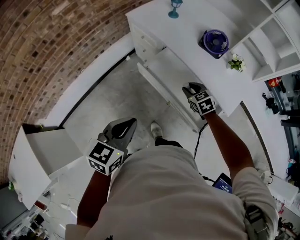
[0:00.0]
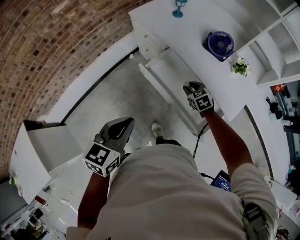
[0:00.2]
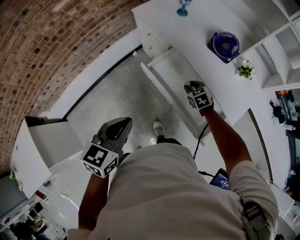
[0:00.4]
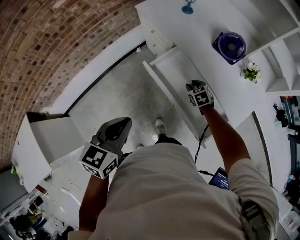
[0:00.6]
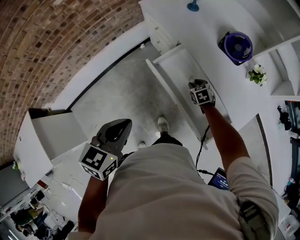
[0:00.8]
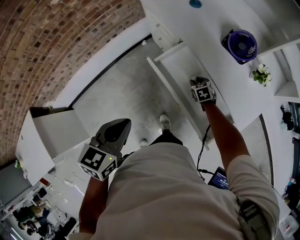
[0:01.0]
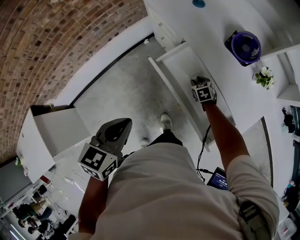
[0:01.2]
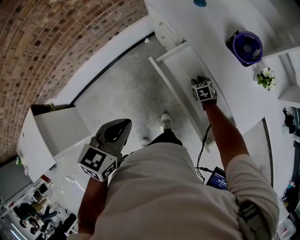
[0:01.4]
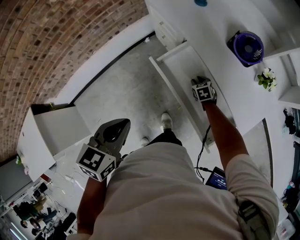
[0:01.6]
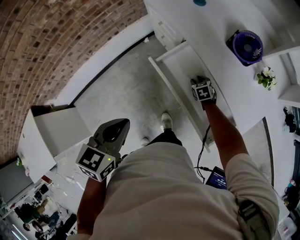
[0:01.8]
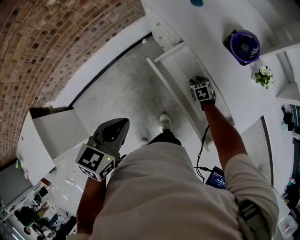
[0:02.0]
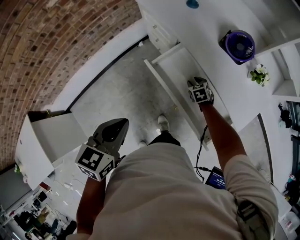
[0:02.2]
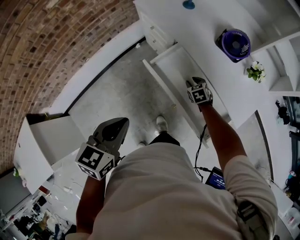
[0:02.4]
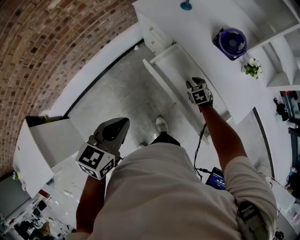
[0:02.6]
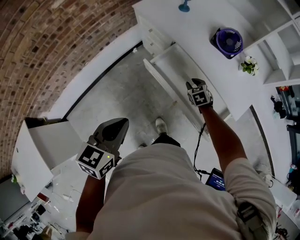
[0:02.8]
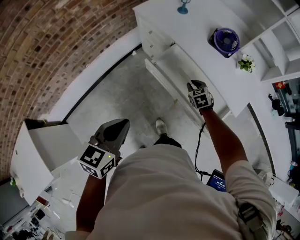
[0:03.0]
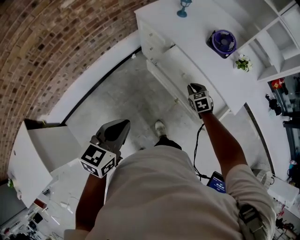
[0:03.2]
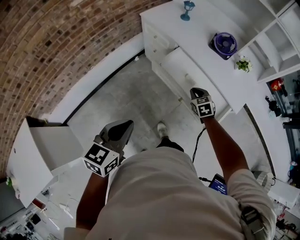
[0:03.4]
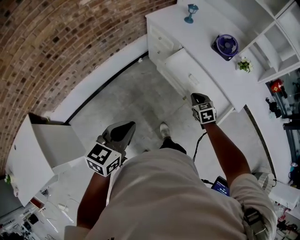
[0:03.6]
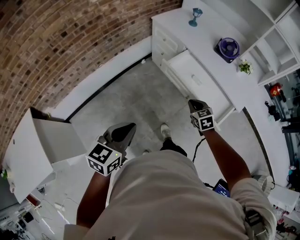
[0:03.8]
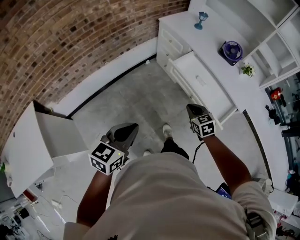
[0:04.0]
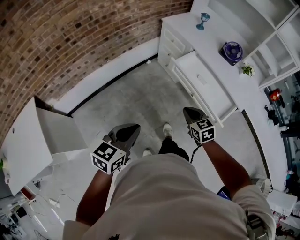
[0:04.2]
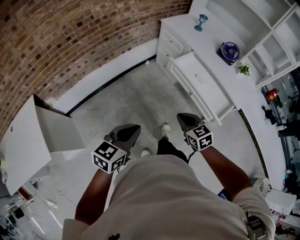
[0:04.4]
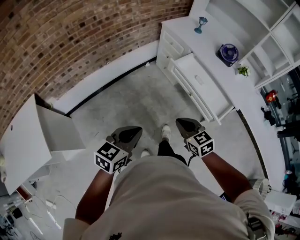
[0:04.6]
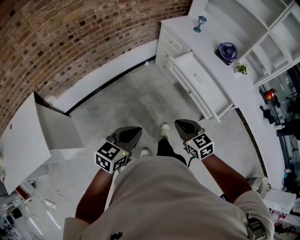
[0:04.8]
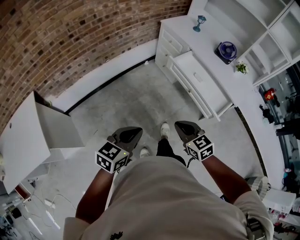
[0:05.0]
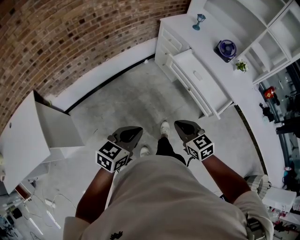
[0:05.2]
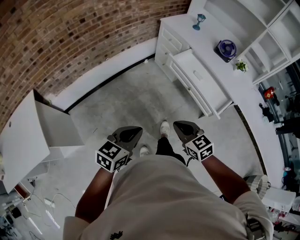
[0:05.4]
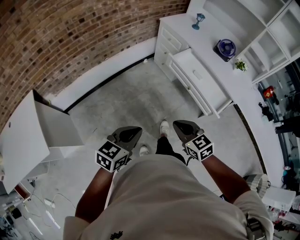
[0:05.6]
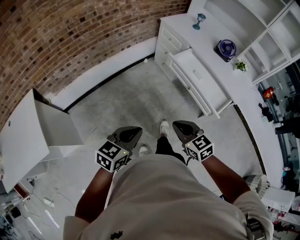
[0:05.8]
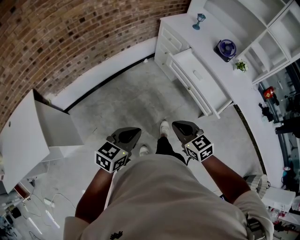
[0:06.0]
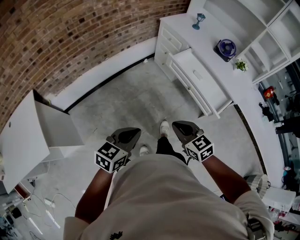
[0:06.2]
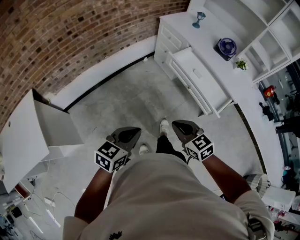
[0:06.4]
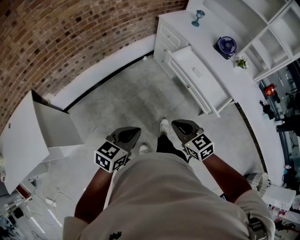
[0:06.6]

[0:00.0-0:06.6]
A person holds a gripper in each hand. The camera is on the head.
0:00.0 to 0:01.6: The right gripper moves downward and forward, approximately 20 cm. Meanwhile the left gripper shifts some 5 cm forward.
0:01.6 to 0:03.2: The left gripper heads backward, covering about 10 cm. The right gripper travels upward and backward by some 20 cm, and closes up.
0:03.2 to 0:05.0: The left gripper travels backward by approximately 25 cm; the right gripper goes about 50 cm backward, to the left and upward, and turns by roughly 30 degrees.
0:05.0 to 0:06.6: There are only small adjustments of the grippers.

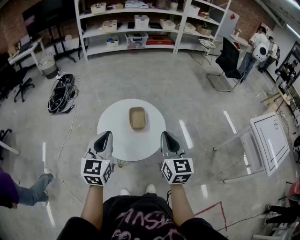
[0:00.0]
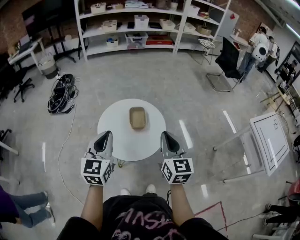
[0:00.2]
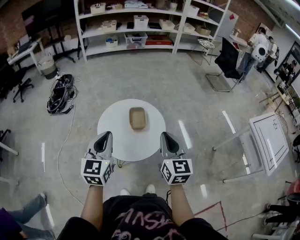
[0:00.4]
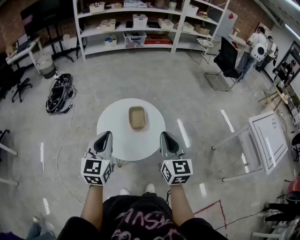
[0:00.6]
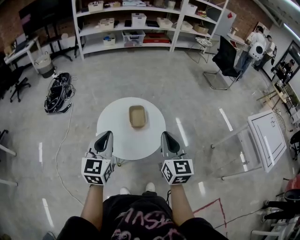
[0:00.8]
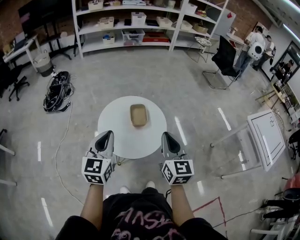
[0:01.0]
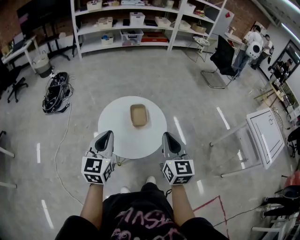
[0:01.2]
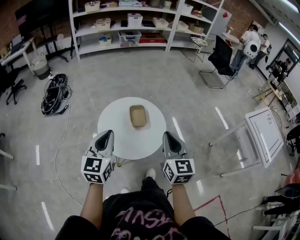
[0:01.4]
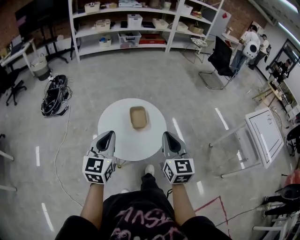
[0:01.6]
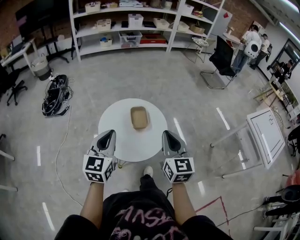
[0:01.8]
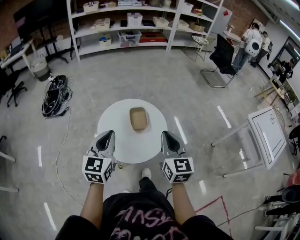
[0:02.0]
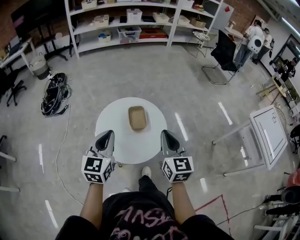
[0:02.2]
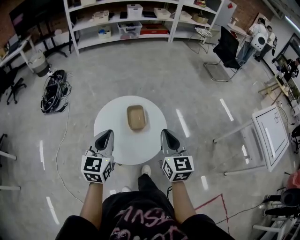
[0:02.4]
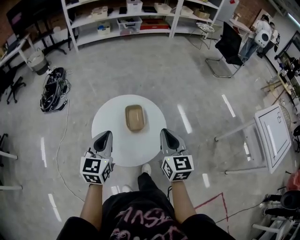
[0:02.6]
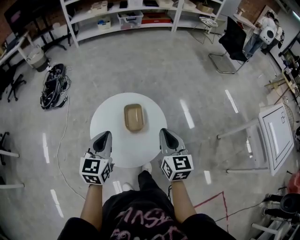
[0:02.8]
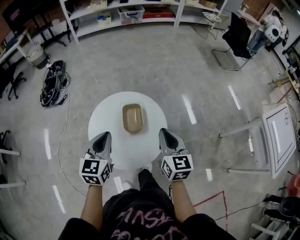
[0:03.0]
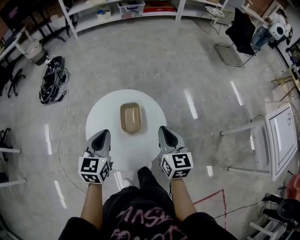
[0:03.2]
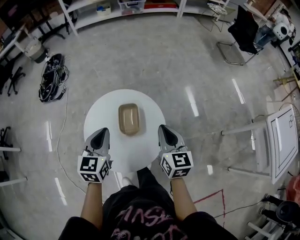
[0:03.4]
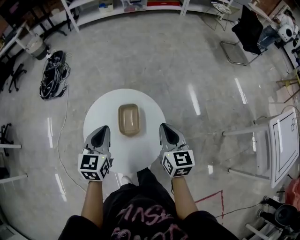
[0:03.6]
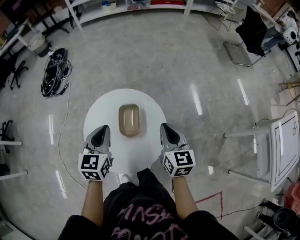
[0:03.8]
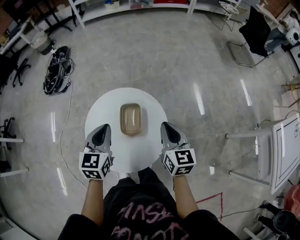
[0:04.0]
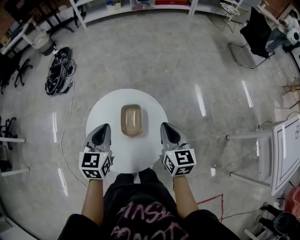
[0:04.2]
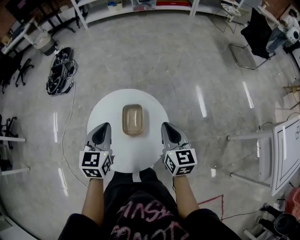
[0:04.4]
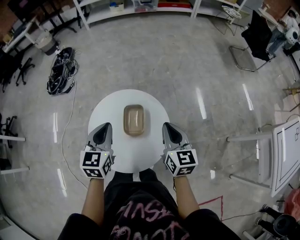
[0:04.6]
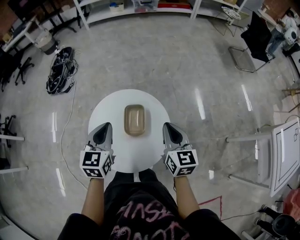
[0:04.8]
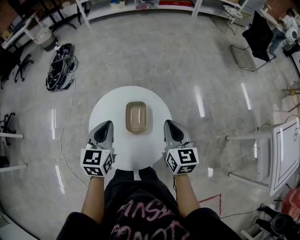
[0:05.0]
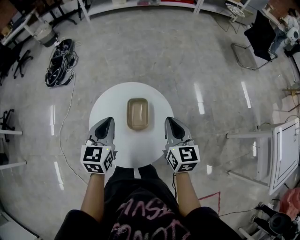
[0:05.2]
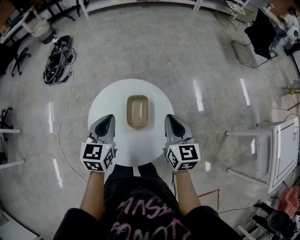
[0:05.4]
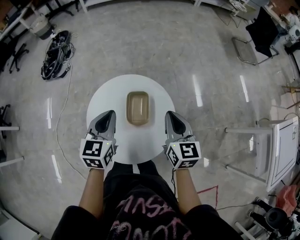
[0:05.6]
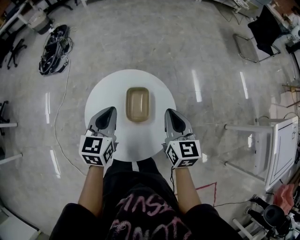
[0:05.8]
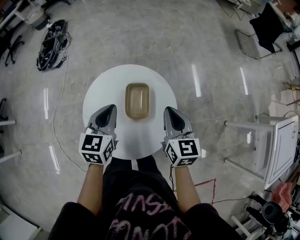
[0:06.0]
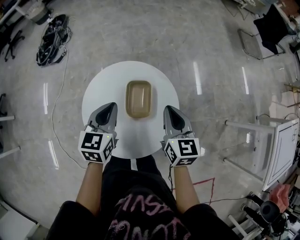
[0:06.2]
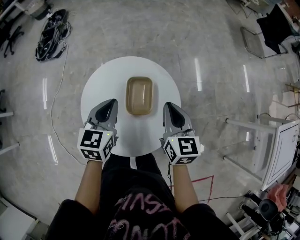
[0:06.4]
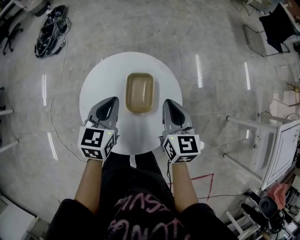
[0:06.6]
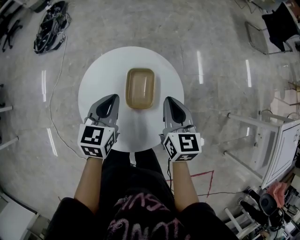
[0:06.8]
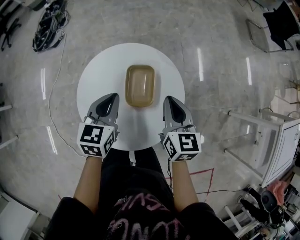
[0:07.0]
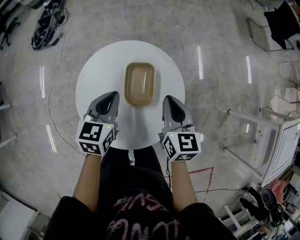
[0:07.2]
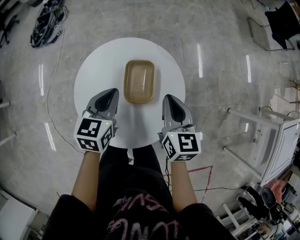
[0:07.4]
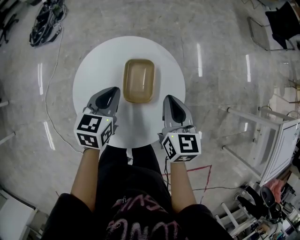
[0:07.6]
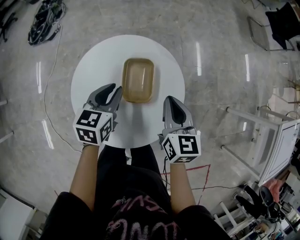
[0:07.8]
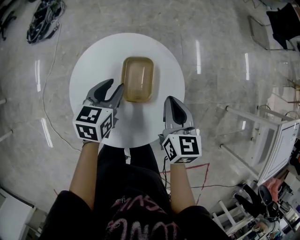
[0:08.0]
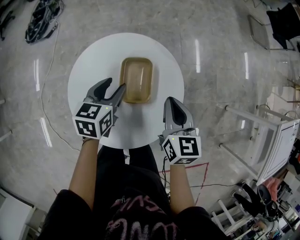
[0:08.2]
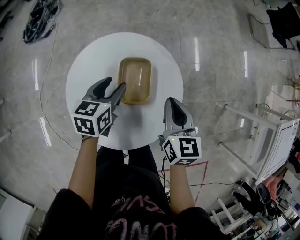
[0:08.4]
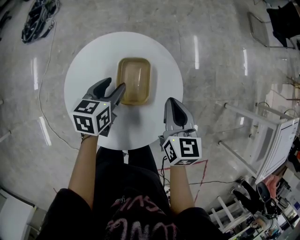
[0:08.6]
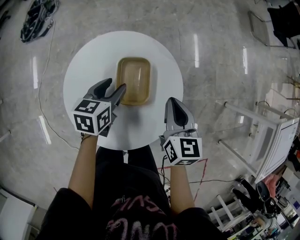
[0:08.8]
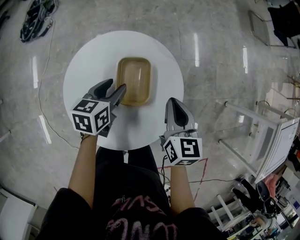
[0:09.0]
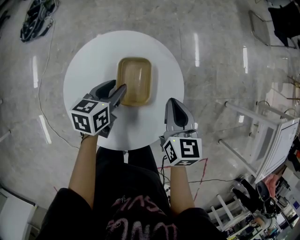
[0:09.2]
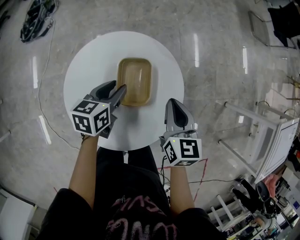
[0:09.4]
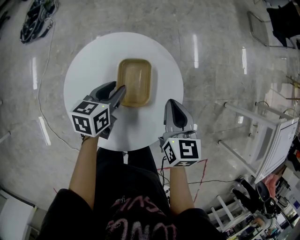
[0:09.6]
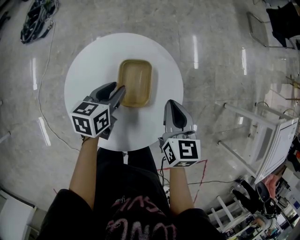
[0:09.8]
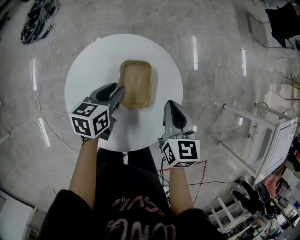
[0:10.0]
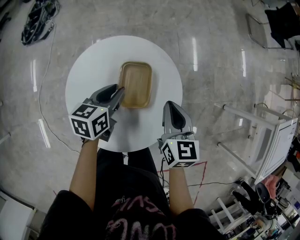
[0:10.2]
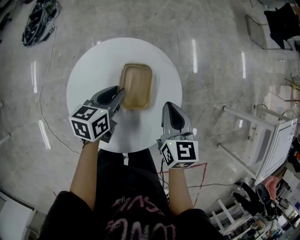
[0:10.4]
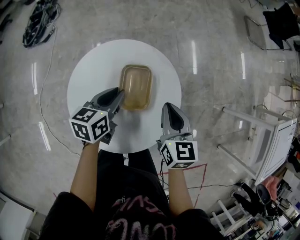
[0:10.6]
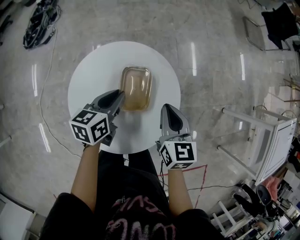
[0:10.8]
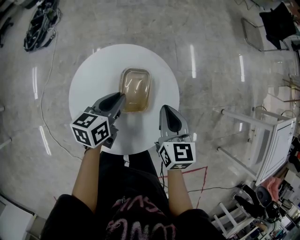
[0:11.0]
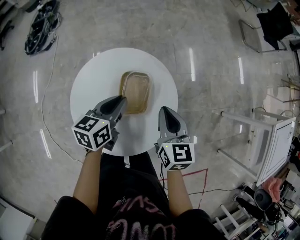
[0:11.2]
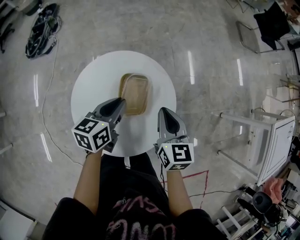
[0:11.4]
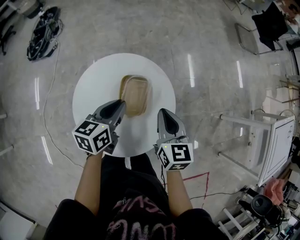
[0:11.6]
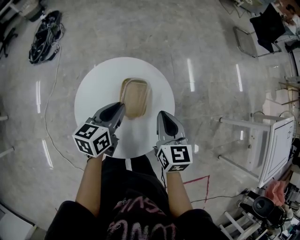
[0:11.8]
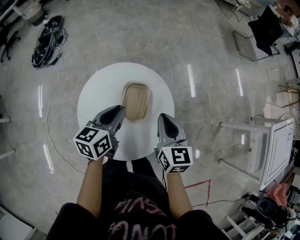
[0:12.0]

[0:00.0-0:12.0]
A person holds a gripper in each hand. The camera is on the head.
0:00.0 to 0:01.6: There are only small adjustments of the grippers.
0:01.6 to 0:03.0: Both grippers travel together forward and downward, roughly 20 cm.
0:03.0 to 0:04.4: Both grippers move forward, about 10 cm.
0:04.4 to 0:06.0: The left gripper heads downward, covering some 5 cm, while the right gripper travels to the left by approximately 5 cm.
0:06.0 to 0:07.6: The grippers both shift downward by about 10 cm.
0:07.6 to 0:09.0: The left gripper goes some 5 cm downward, and opens up.
0:09.0 to 0:10.4: The left gripper closes its fingers.
0:10.4 to 0:12.0: Both grippers move upward, about 10 cm.

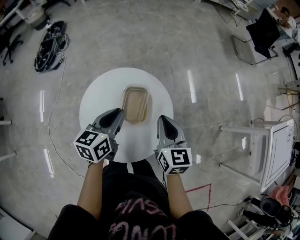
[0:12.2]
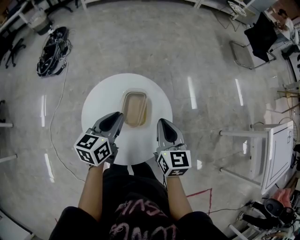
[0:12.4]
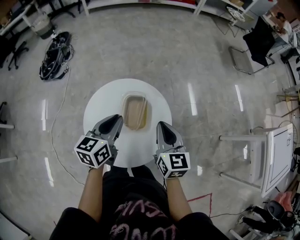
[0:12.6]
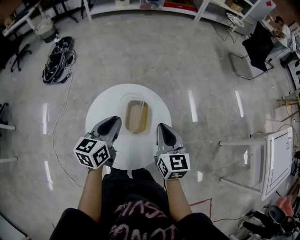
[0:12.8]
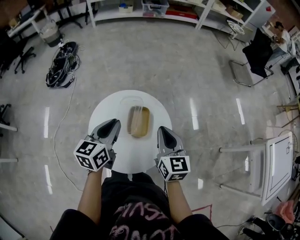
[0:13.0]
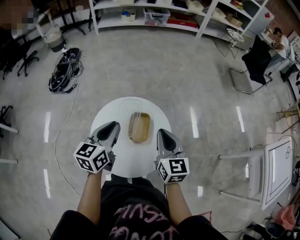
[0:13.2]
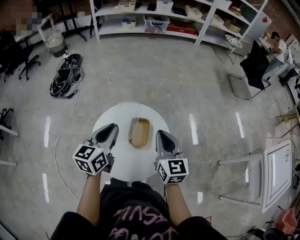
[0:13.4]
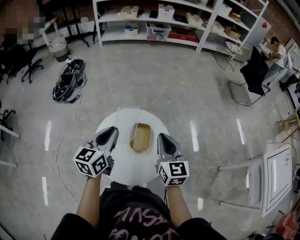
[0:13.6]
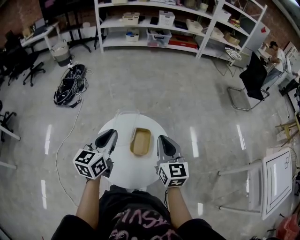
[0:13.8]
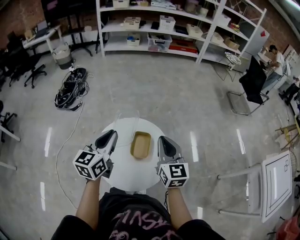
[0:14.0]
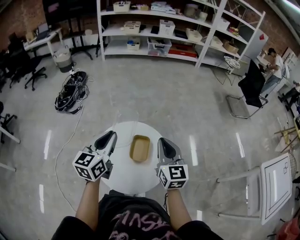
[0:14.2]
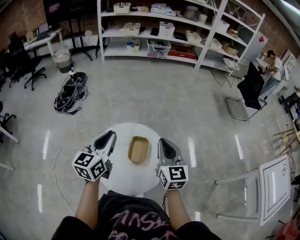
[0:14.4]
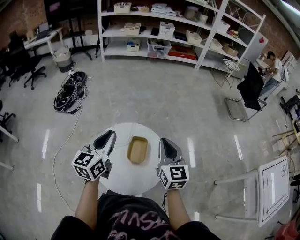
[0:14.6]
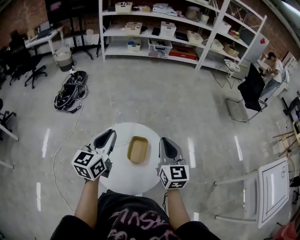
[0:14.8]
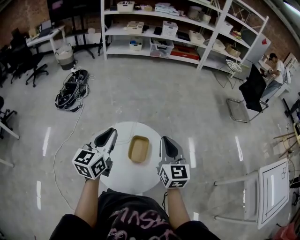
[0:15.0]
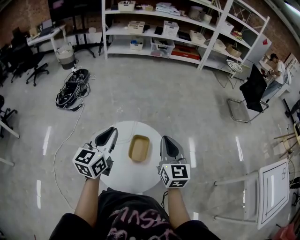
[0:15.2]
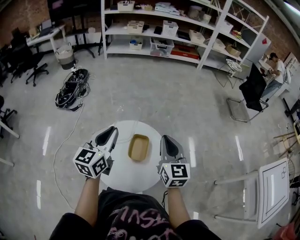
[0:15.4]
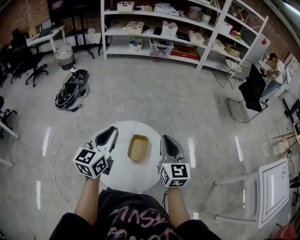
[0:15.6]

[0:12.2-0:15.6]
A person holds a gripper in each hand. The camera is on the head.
0:12.2 to 0:13.8: Both grippers move upward, approximately 15 cm. The left gripper turns by some 20 degrees.
0:13.8 to 0:15.6: The grippers move only a little.

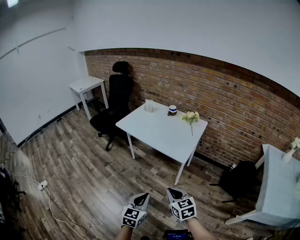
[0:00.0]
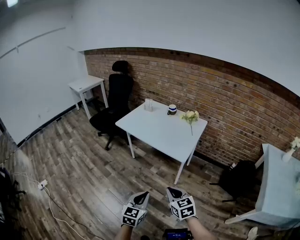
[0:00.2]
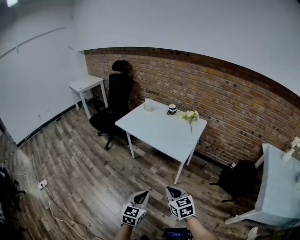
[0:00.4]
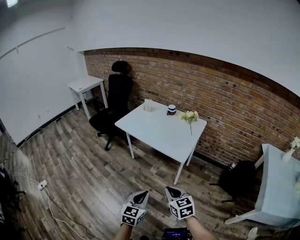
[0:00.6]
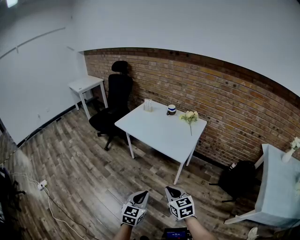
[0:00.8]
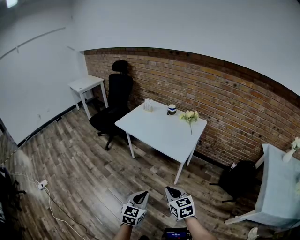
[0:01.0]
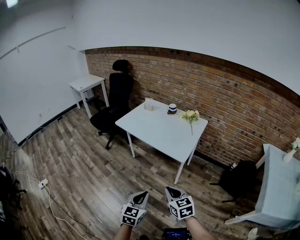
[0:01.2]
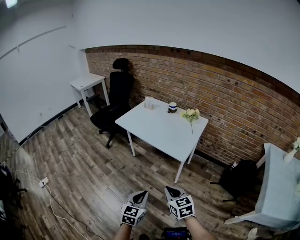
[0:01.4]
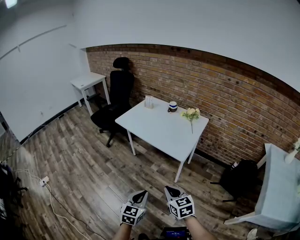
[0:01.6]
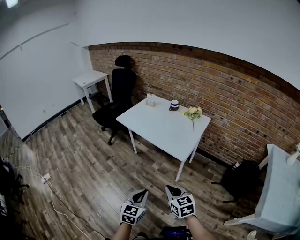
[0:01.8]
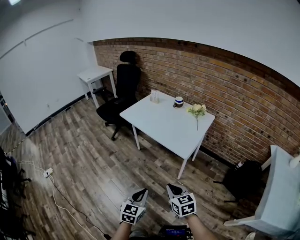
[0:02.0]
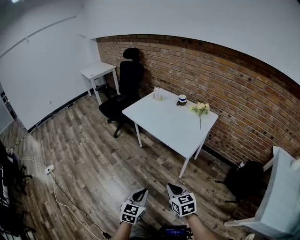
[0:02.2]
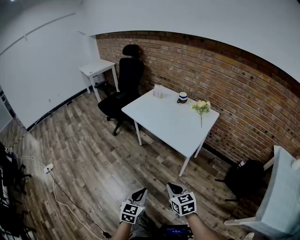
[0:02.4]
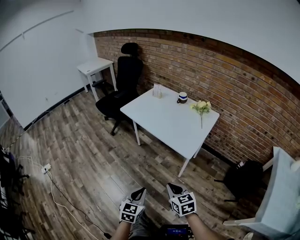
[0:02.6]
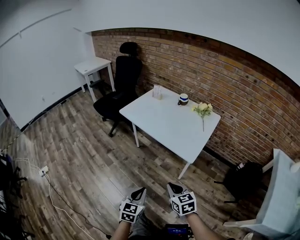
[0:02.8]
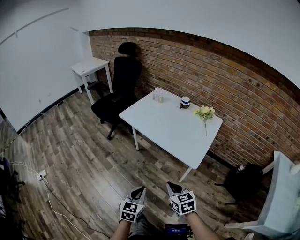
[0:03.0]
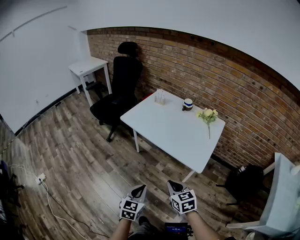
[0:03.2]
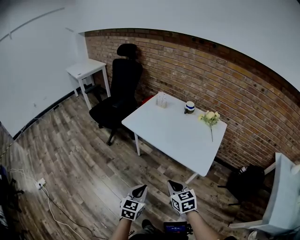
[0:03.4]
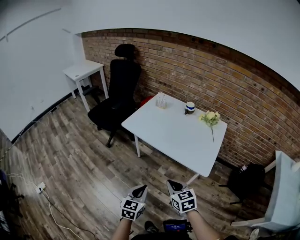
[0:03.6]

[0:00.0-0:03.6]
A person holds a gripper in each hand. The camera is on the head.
0:00.0 to 0:01.8: The grippers stay close to where they were, moving slightly.
0:01.8 to 0:03.6: Both grippers move forward and to the left, roughly 30 cm.
